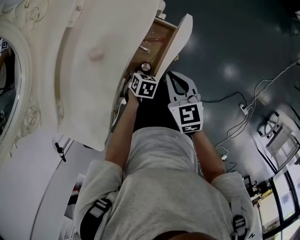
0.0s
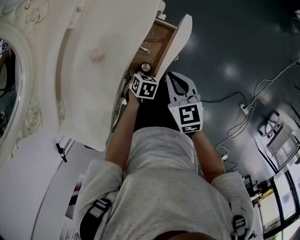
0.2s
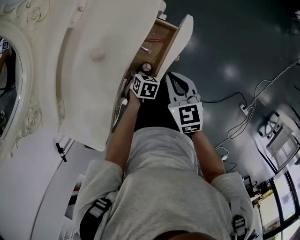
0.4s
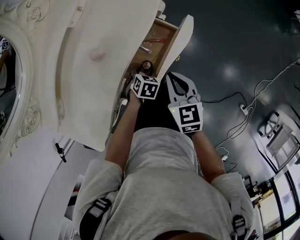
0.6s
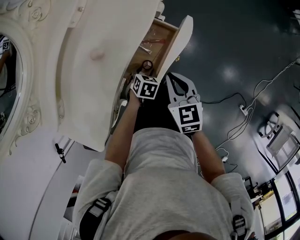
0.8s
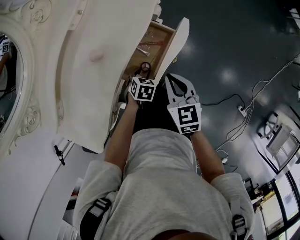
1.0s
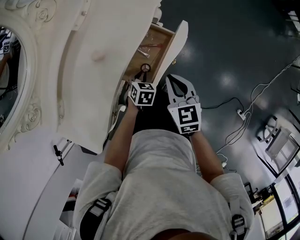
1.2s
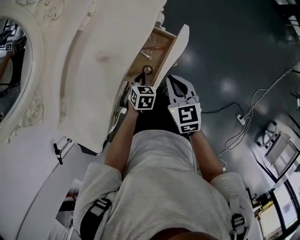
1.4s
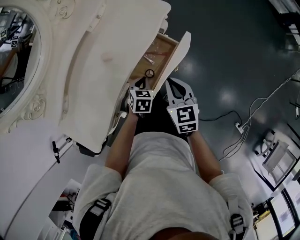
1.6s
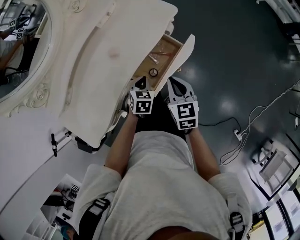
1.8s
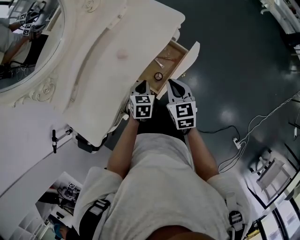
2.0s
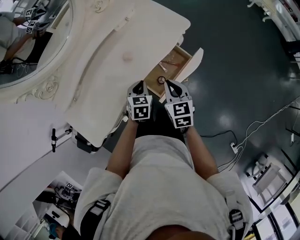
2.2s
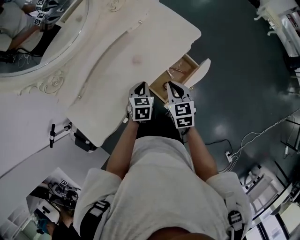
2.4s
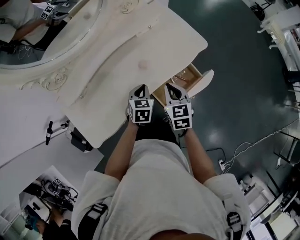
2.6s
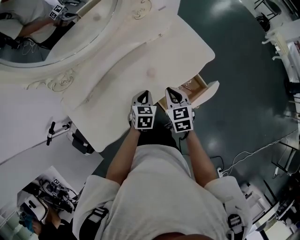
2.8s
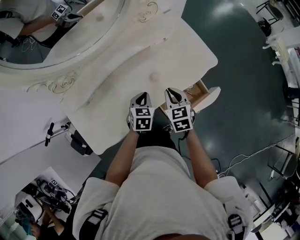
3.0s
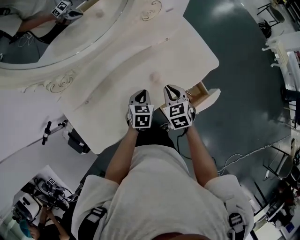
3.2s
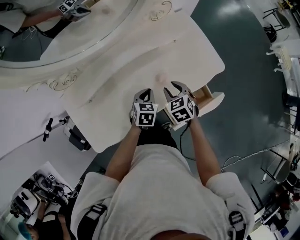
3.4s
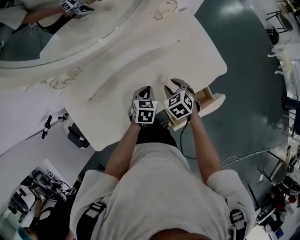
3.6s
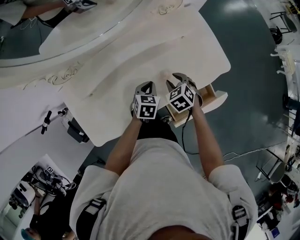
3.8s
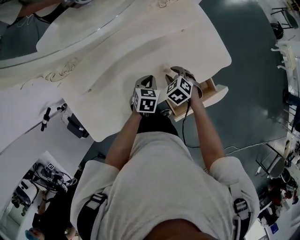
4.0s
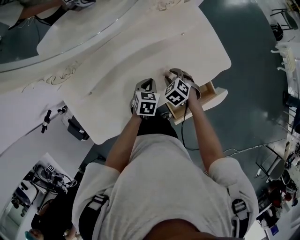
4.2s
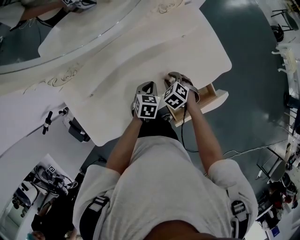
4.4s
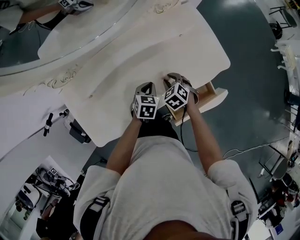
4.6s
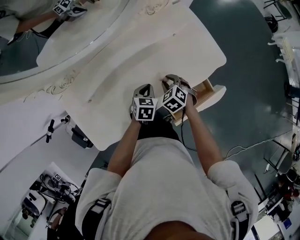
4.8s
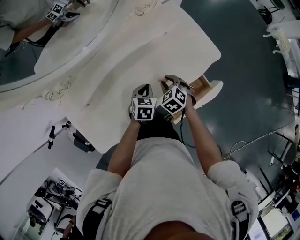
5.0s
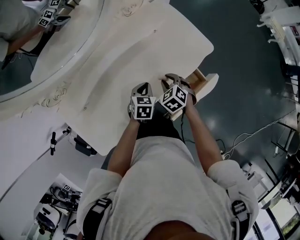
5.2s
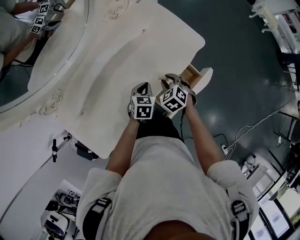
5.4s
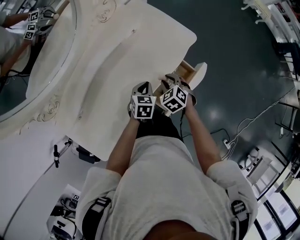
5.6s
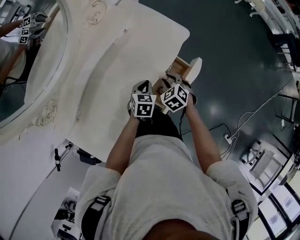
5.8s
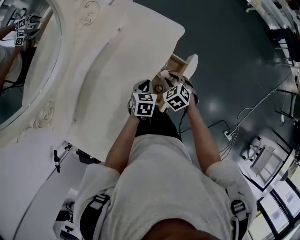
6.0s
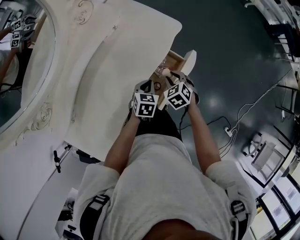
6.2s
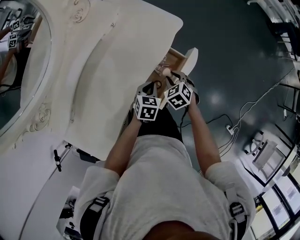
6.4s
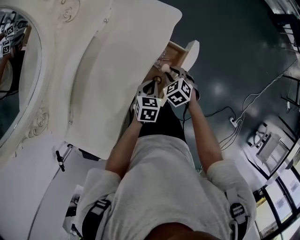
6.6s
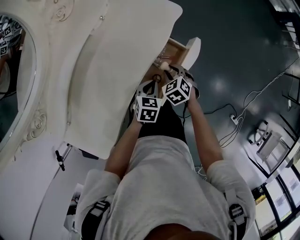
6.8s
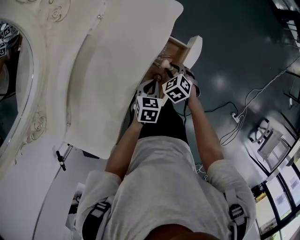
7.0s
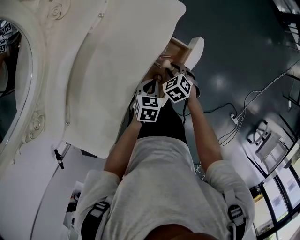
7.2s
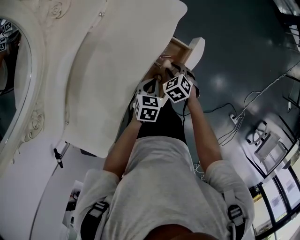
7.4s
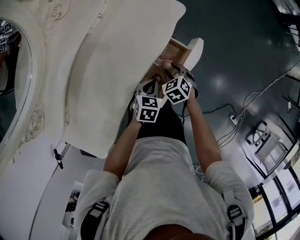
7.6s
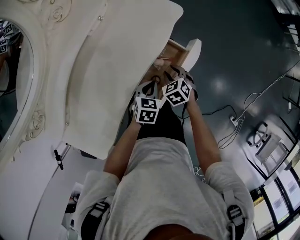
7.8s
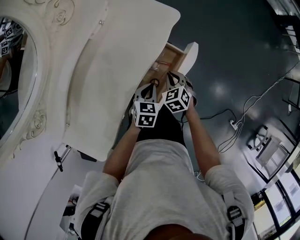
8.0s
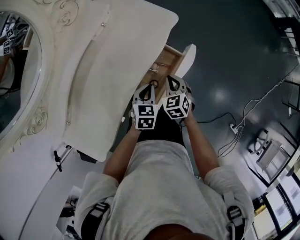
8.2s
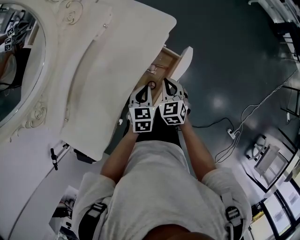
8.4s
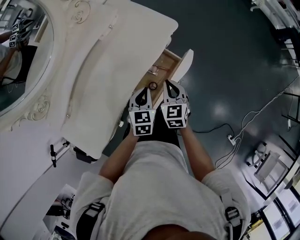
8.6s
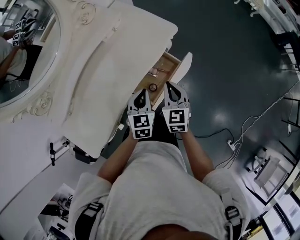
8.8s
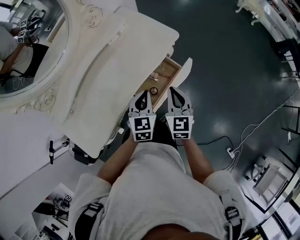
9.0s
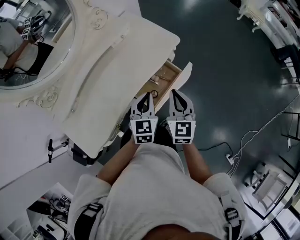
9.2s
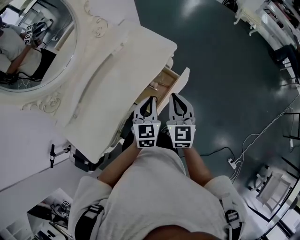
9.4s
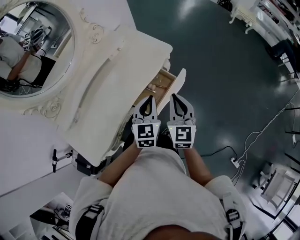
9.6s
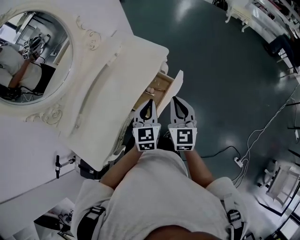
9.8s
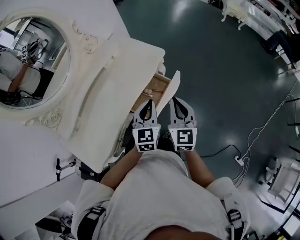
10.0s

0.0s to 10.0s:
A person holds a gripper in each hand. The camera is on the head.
0.0s to 1.4s: The left gripper shifts about 5 cm upward, and closes its fingers.
1.4s to 2.8s: The right gripper travels to the left and forward by approximately 20 cm, and changes its angle by about 20 degrees; the left gripper goes roughly 20 cm to the left and upward, and turns by about 30 degrees.
2.8s to 4.2s: The right gripper travels downward, forward and to the left by about 15 cm, rotates about 50 degrees, and opens its fingers; the left gripper is displaced forward and downward by roughly 10 cm.
4.2s to 5.8s: The left gripper ends up approximately 15 cm from where it was, and rotates approximately 20 degrees; the right gripper ends up approximately 15 cm from where it was, and swivels some 30 degrees.
5.8s to 7.2s: The right gripper shifts some 10 cm downward and to the right; the left gripper moves to the right and downward, approximately 10 cm.
7.2s to 8.6s: The grippers both shift upward by some 15 cm. The right gripper angles its fingers upward, by approximately 30 degrees, and closes its fingers. The left gripper swivels about 20 degrees.
8.6s to 10.0s: The two grippers go roughly 20 cm upward and to the right. The right gripper swivels some 20 degrees; the left gripper rotates approximately 20 degrees.

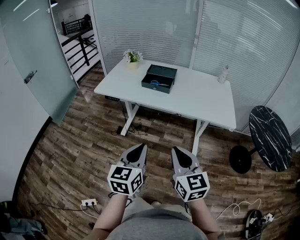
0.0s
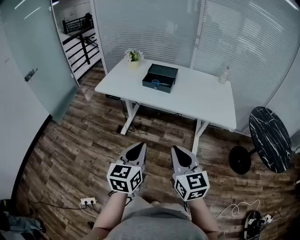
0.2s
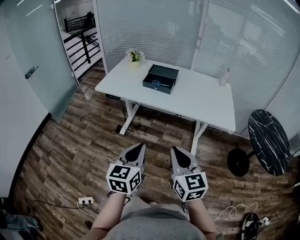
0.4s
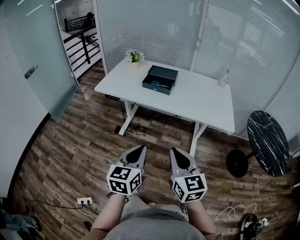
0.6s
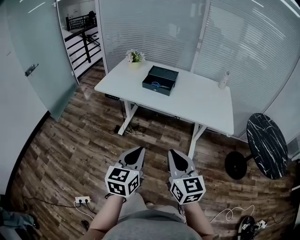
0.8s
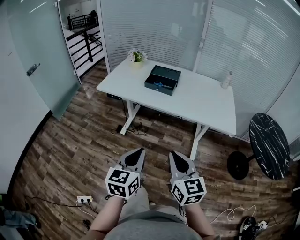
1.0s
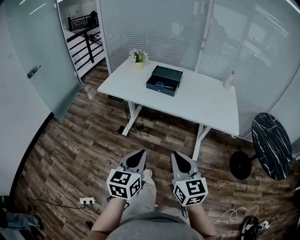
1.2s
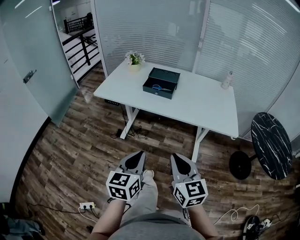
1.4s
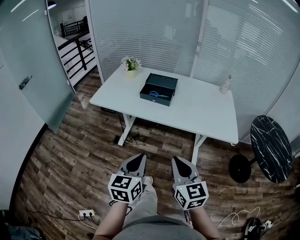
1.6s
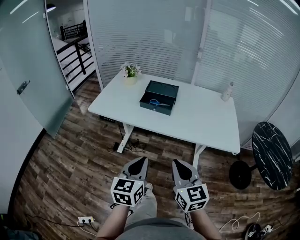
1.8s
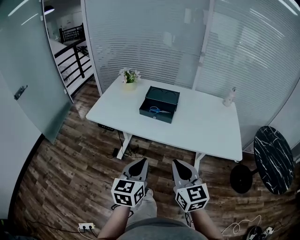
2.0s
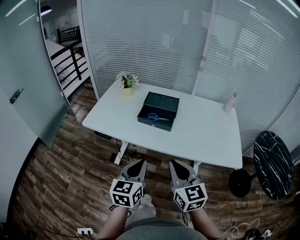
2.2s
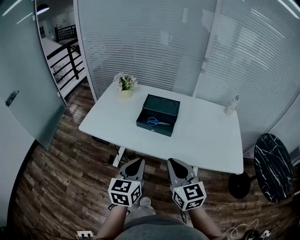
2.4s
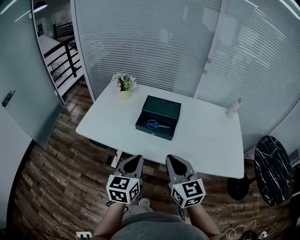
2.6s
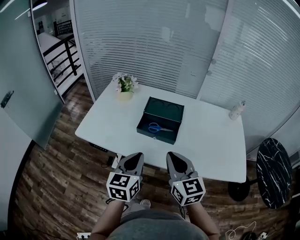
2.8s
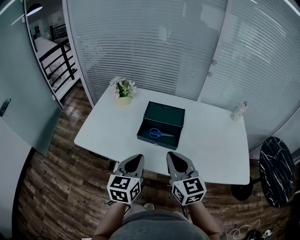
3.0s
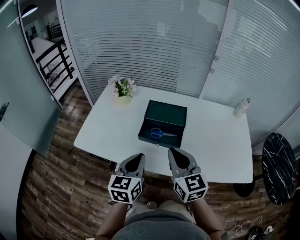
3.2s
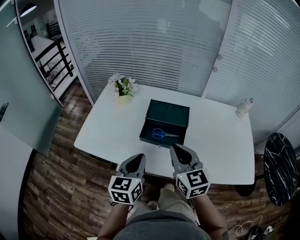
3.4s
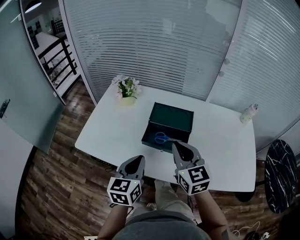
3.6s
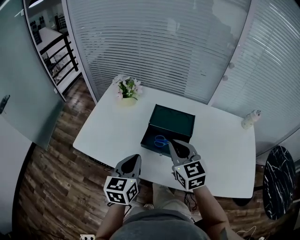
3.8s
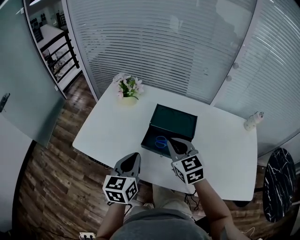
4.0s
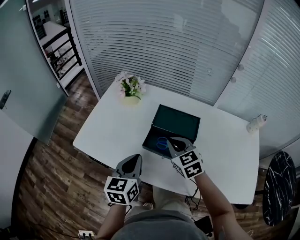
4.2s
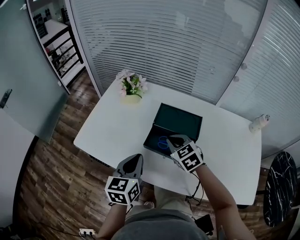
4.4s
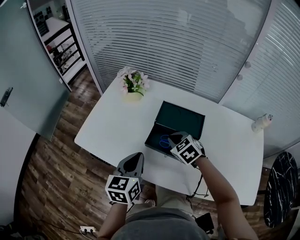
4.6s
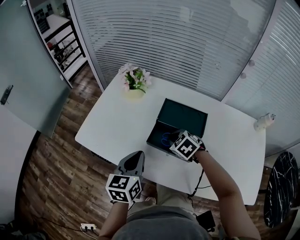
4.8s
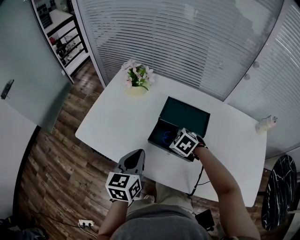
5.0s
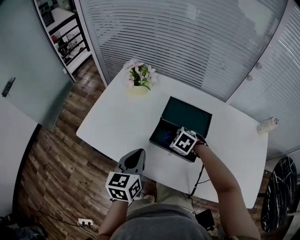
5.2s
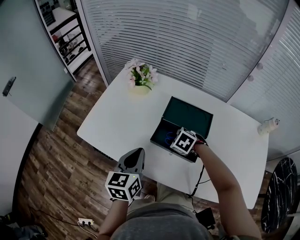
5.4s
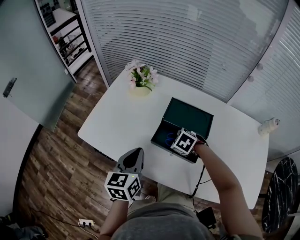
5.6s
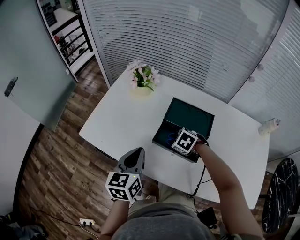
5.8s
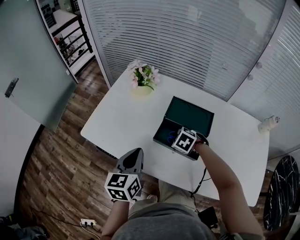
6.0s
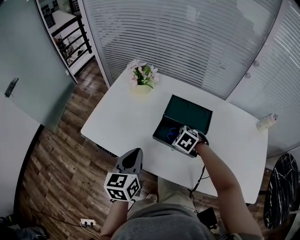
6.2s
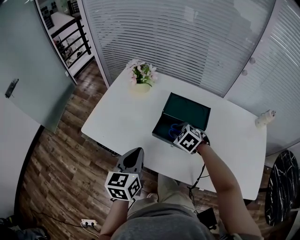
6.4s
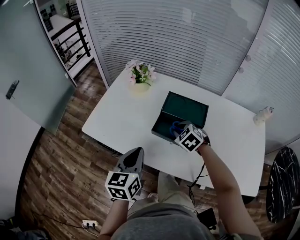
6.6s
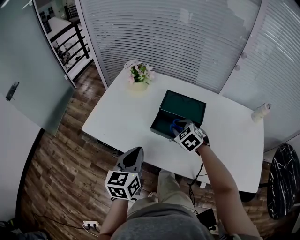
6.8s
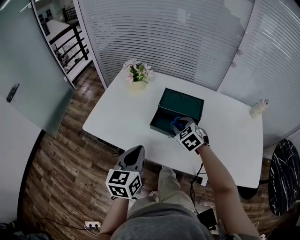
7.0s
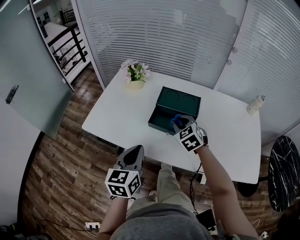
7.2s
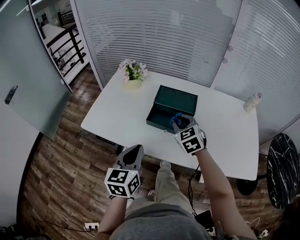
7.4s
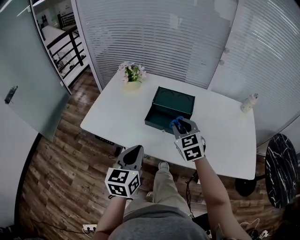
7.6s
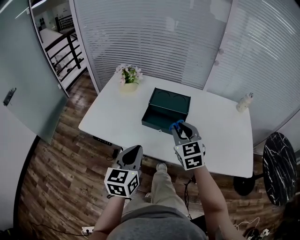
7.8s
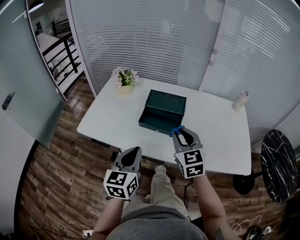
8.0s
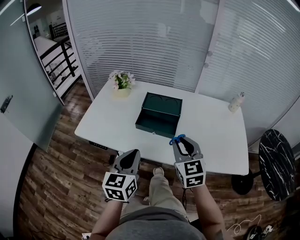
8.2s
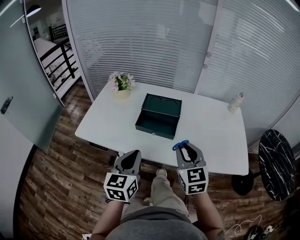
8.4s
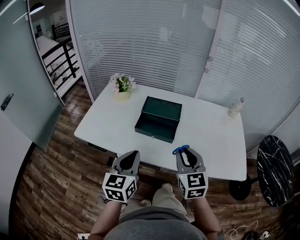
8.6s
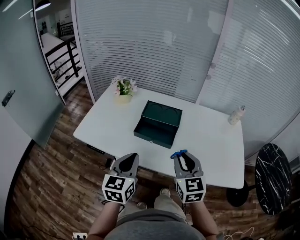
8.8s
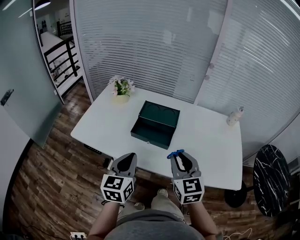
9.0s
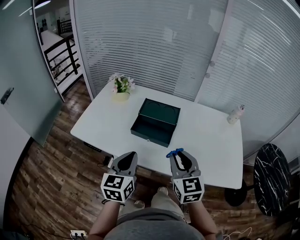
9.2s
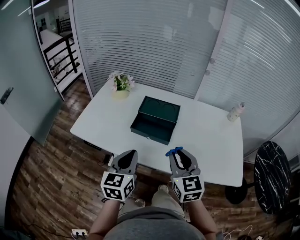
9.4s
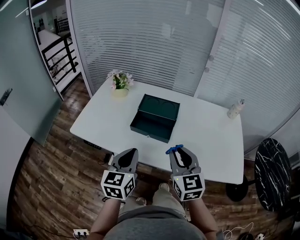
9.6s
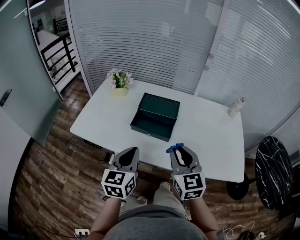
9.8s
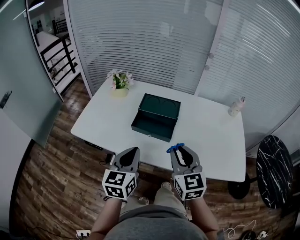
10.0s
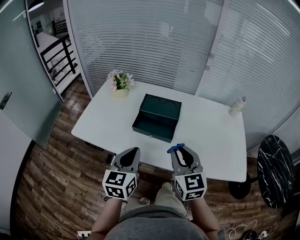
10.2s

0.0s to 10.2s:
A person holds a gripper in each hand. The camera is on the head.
0.0s to 1.4s: There are only small adjustments of the grippers.
1.4s to 3.0s: The two grippers travel together, forward, approximately 40 cm.
3.0s to 4.4s: The left gripper heads forward, covering roughly 10 cm. Meanwhile the right gripper is displaced forward and downward by some 25 cm, and tilts its fingers approximately 30 degrees downward.
4.4s to 5.8s: The right gripper travels downward by about 10 cm, and changes its angle by about 40 degrees.
5.8s to 7.2s: The left gripper shifts some 10 cm backward, while the right gripper heads upward and backward, covering some 15 cm, and points its fingers approximately 30 degrees further upward.
7.2s to 8.8s: The left gripper travels to the right by roughly 5 cm; the right gripper is displaced backward, upward and to the right by some 25 cm, and changes its angle by roughly 30 degrees.
8.8s to 10.2s: There are only small adjustments of the grippers.

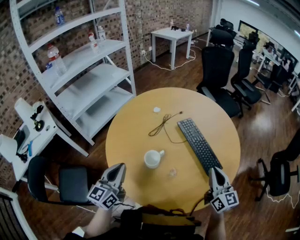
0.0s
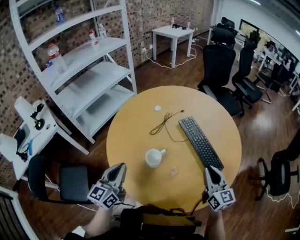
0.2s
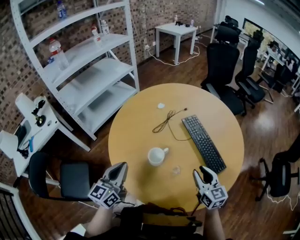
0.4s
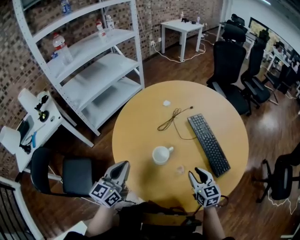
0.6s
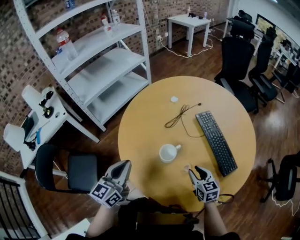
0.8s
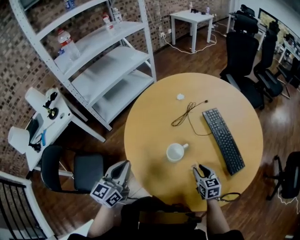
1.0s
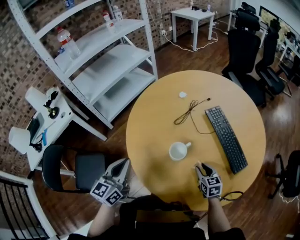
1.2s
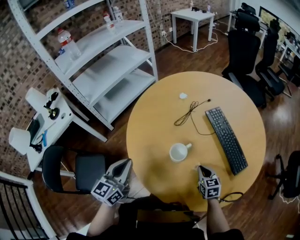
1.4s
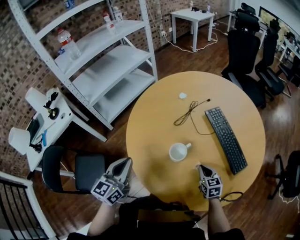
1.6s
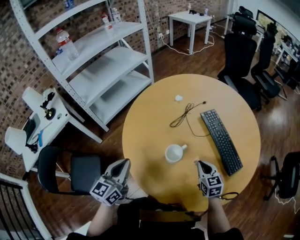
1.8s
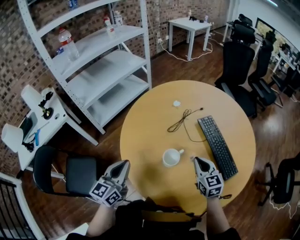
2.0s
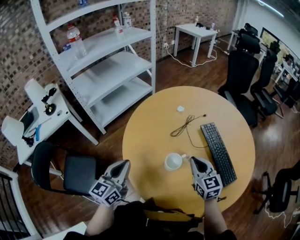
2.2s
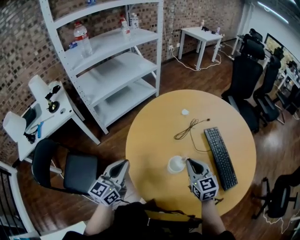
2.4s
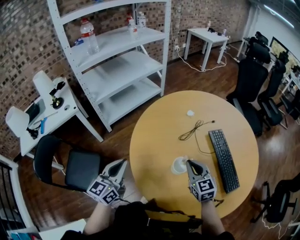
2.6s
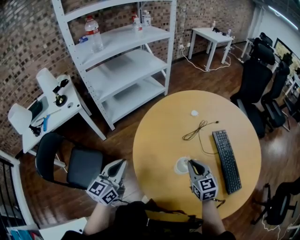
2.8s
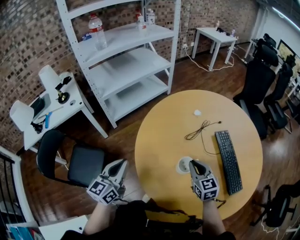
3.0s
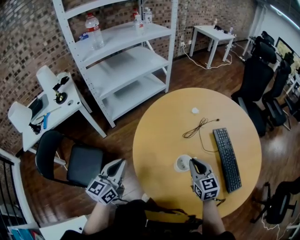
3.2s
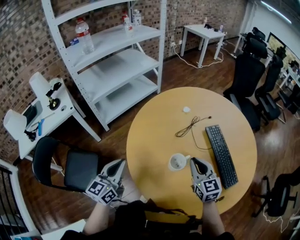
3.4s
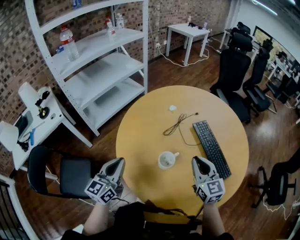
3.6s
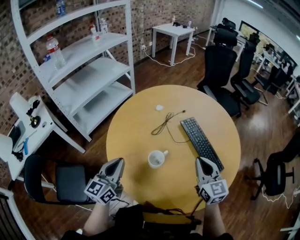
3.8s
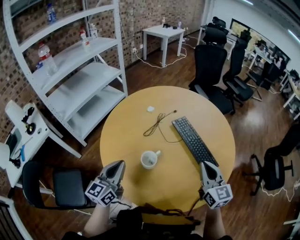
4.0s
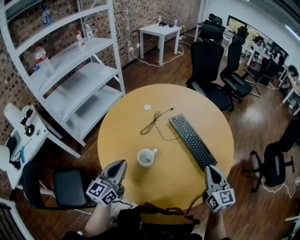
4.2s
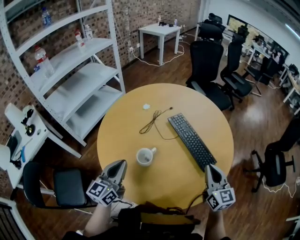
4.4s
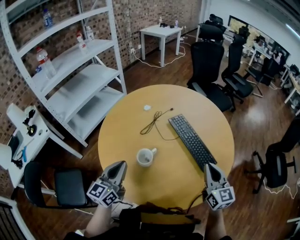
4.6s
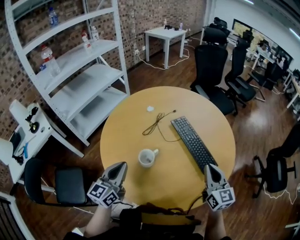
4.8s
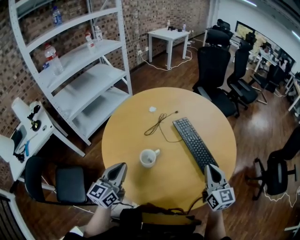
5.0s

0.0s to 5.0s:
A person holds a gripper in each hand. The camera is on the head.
0.0s to 1.6s: The left gripper moves to the left, some 10 cm. The right gripper goes some 25 cm downward and to the left, angles its fingers downward, by about 40 degrees, and opens, then closes once more.
1.6s to 3.4s: The right gripper swings up and down, roughly 15 cm each way, with 2 reversals, and rotates about 20 degrees.
3.4s to 5.0s: The right gripper shifts approximately 20 cm to the right, and turns by about 20 degrees, while the left gripper goes approximately 15 cm to the right.
